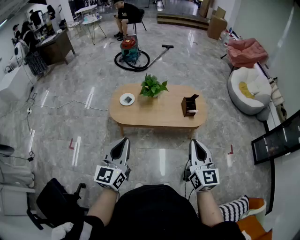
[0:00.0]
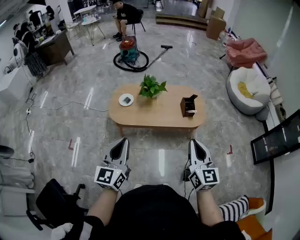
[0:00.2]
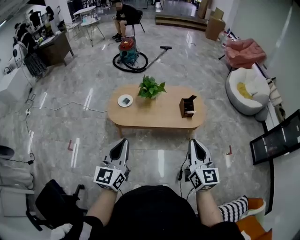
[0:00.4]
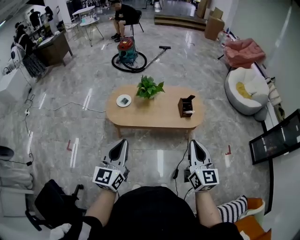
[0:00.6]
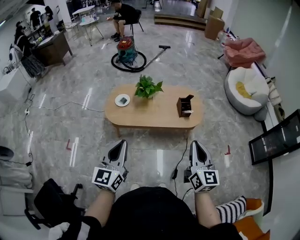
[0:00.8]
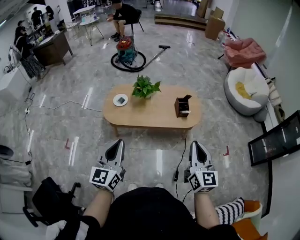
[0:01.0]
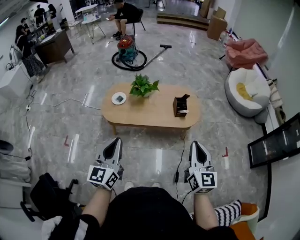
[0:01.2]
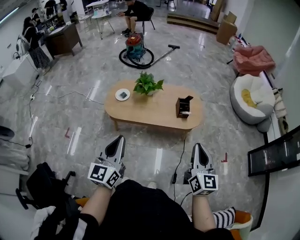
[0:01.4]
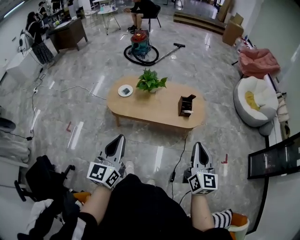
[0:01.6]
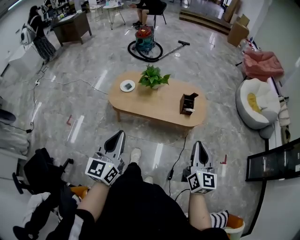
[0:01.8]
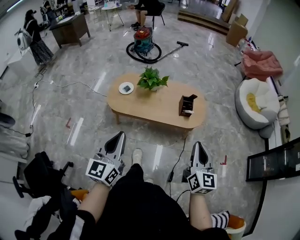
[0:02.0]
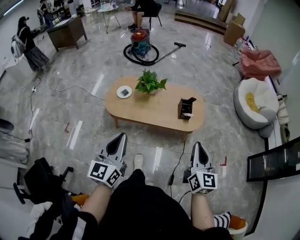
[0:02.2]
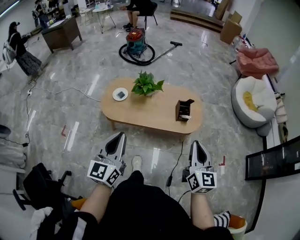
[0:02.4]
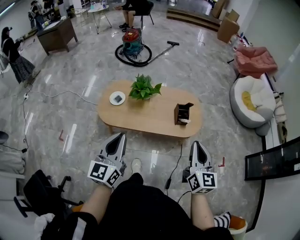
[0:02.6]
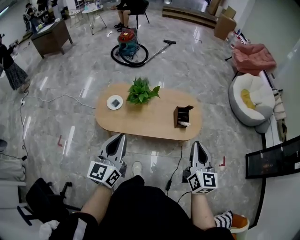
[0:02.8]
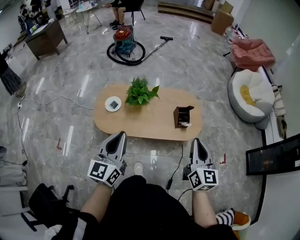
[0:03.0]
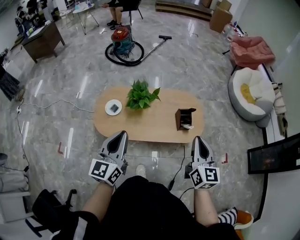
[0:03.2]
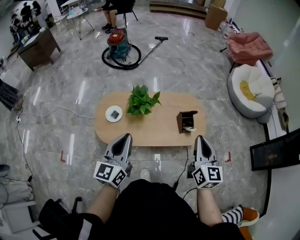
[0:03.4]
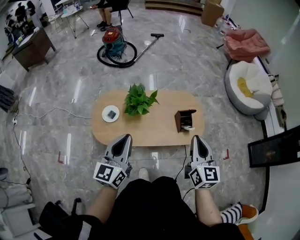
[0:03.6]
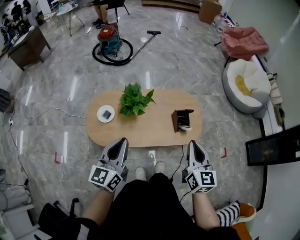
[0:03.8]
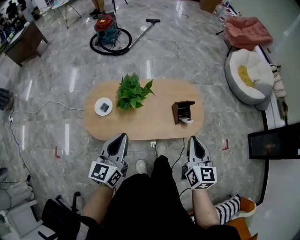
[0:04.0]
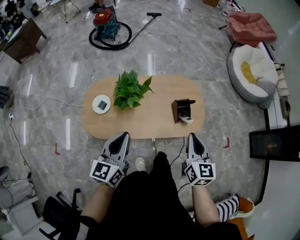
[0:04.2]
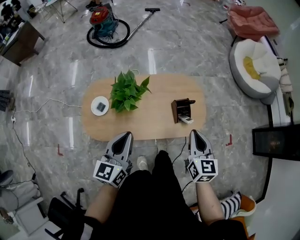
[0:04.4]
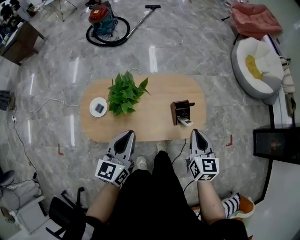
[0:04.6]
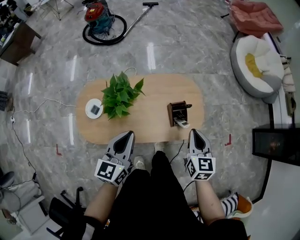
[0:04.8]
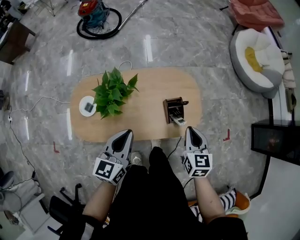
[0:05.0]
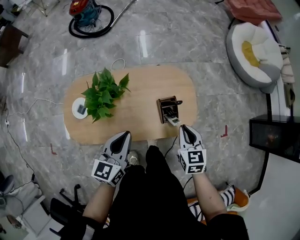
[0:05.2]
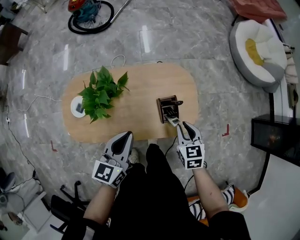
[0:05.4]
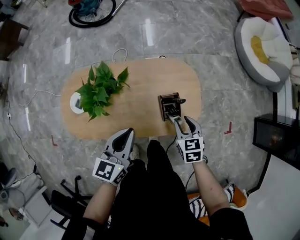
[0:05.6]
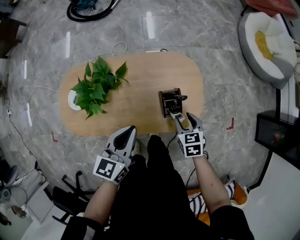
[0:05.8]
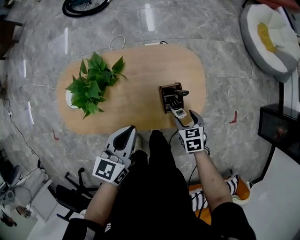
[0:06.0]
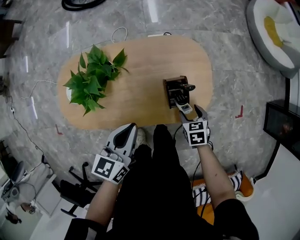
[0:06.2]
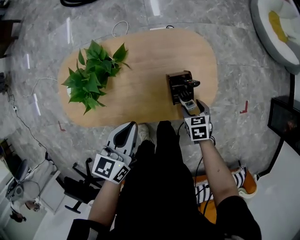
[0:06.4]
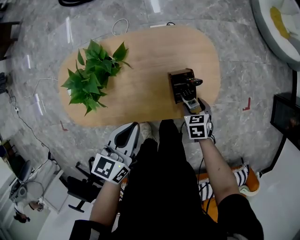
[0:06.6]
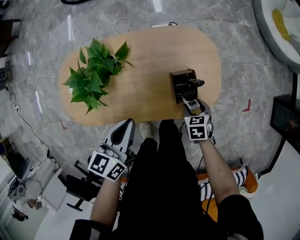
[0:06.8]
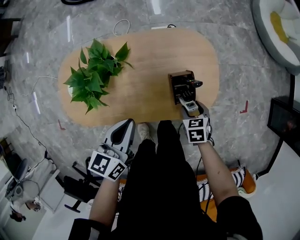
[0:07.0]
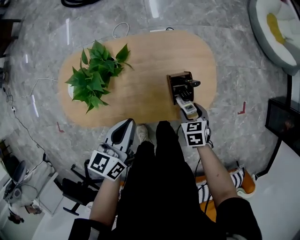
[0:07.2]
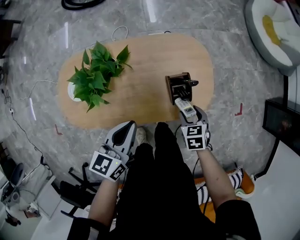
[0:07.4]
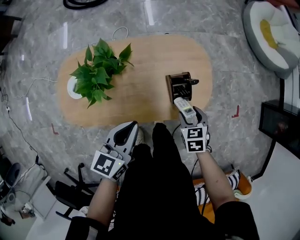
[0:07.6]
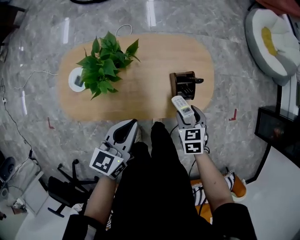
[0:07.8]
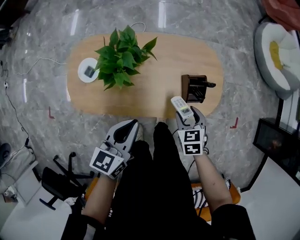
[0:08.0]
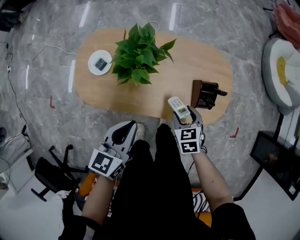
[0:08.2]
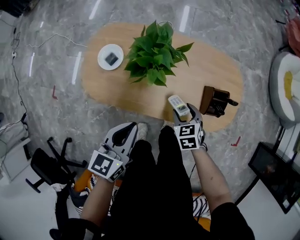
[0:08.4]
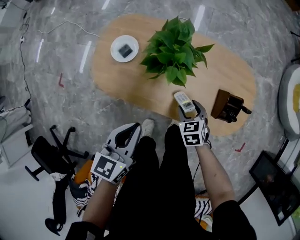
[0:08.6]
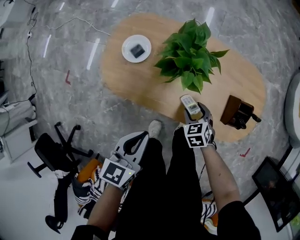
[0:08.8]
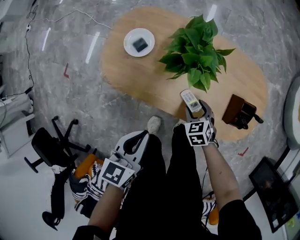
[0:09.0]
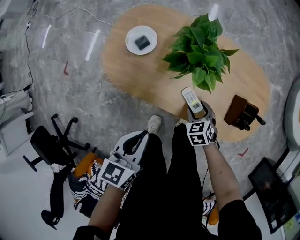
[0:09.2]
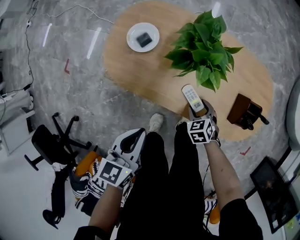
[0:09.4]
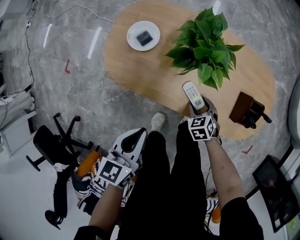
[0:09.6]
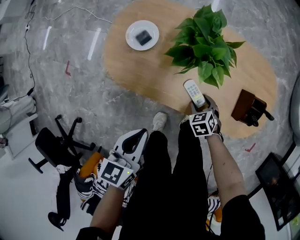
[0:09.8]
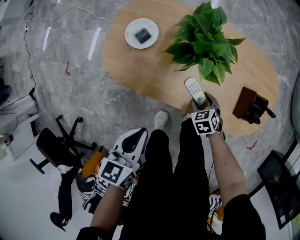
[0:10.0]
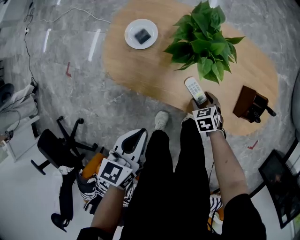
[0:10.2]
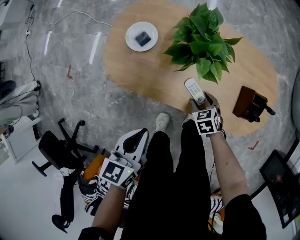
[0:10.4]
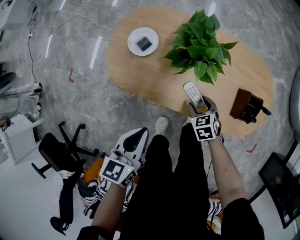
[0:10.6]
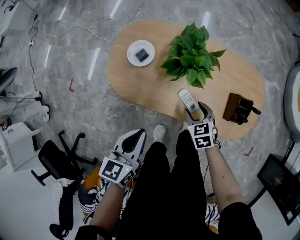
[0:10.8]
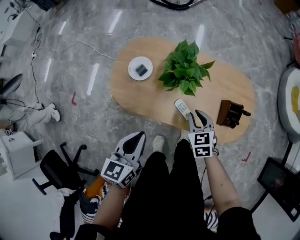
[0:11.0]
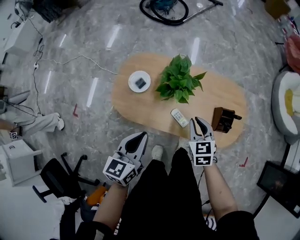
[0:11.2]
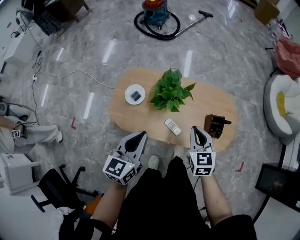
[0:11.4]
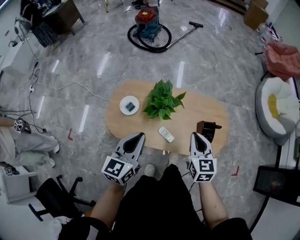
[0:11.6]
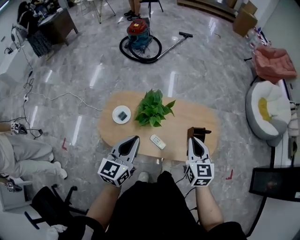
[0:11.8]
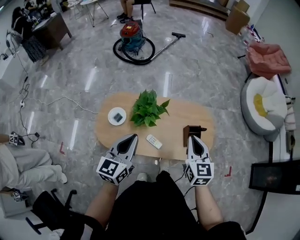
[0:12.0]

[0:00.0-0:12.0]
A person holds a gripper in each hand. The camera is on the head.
0:00.0 to 0:01.6: Both grippers move to the right, approximately 10 cm.
0:01.6 to 0:03.0: Both grippers travel together forward, approximately 20 cm.
0:03.0 to 0:04.4: Both grippers move forward and downward, about 20 cm.
0:04.4 to 0:06.0: The left gripper is displaced downward, to the right and forward by about 20 cm, while the right gripper moves downward, roughly 30 cm, points its fingers about 40 degrees further downward, and opens up.
0:06.0 to 0:07.6: The right gripper moves about 5 cm downward and comes back.
0:07.6 to 0:09.0: The left gripper changes place by approximately 25 cm, and changes its angle by some 30 degrees. The right gripper changes place by roughly 30 cm, and changes its angle by about 40 degrees.
0:09.0 to 0:10.4: The right gripper moves downward, approximately 5 cm.
0:10.4 to 0:12.0: The left gripper shifts approximately 25 cm upward and forward, and swivels about 30 degrees; the right gripper travels upward by roughly 50 cm, tips its fingers upward by about 50 degrees, and closes its fingers.

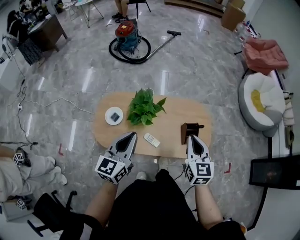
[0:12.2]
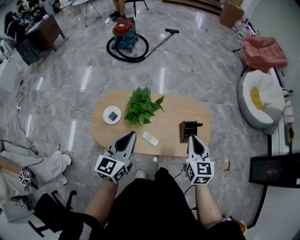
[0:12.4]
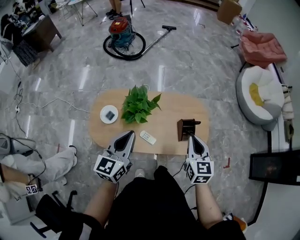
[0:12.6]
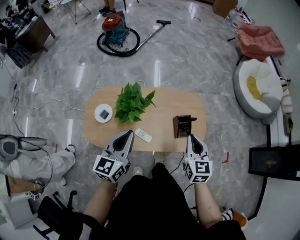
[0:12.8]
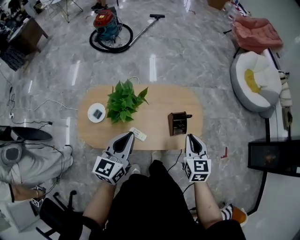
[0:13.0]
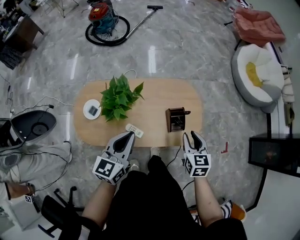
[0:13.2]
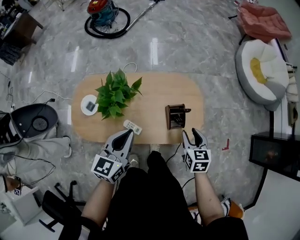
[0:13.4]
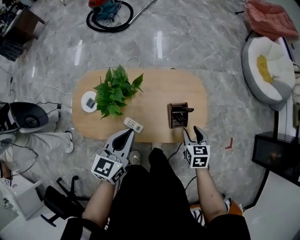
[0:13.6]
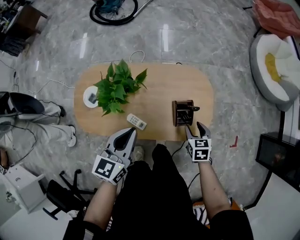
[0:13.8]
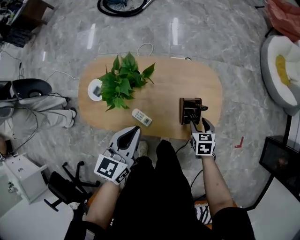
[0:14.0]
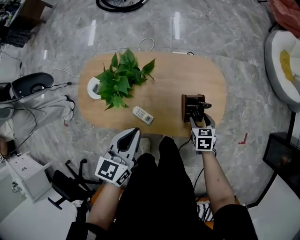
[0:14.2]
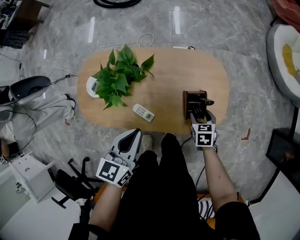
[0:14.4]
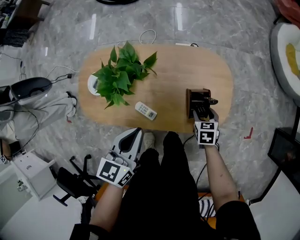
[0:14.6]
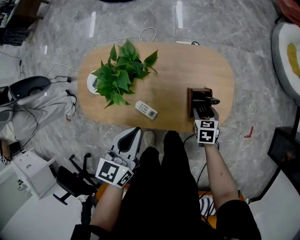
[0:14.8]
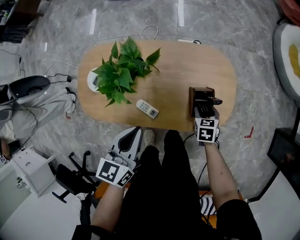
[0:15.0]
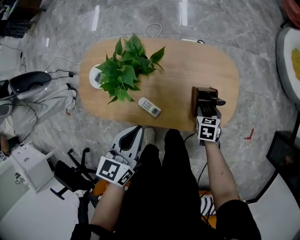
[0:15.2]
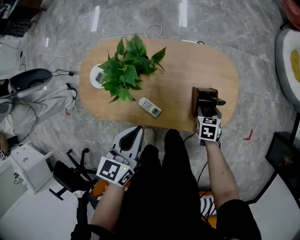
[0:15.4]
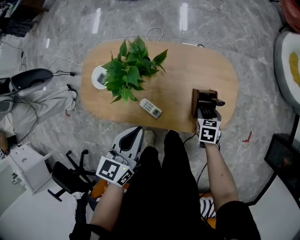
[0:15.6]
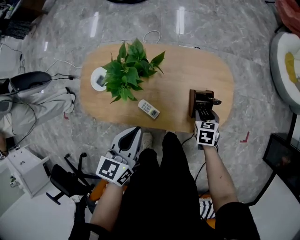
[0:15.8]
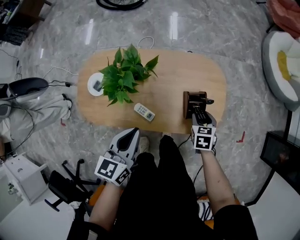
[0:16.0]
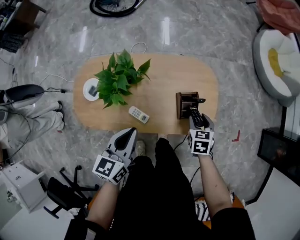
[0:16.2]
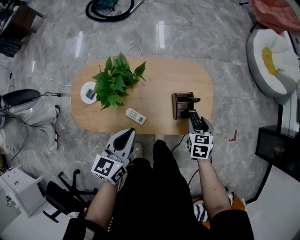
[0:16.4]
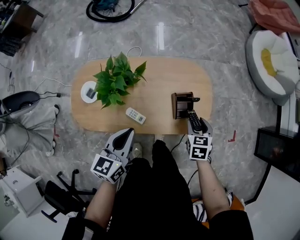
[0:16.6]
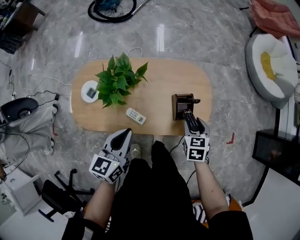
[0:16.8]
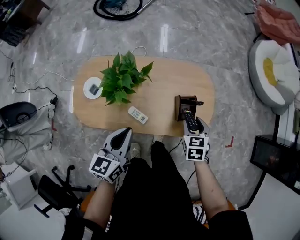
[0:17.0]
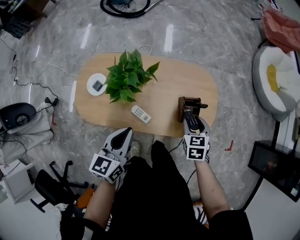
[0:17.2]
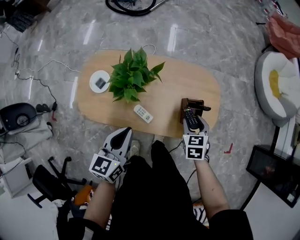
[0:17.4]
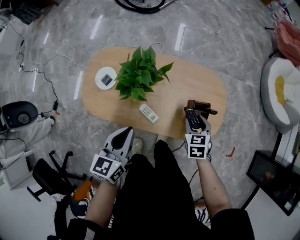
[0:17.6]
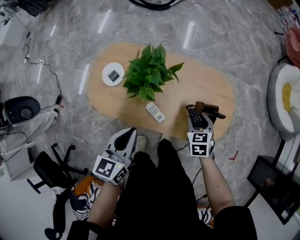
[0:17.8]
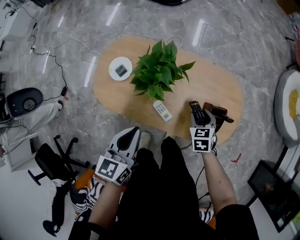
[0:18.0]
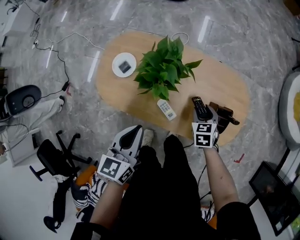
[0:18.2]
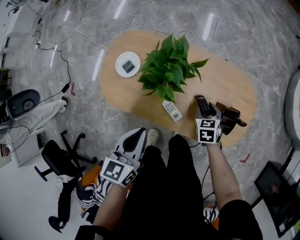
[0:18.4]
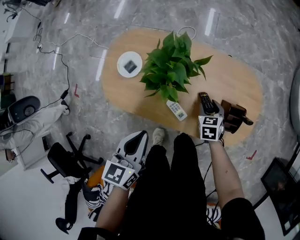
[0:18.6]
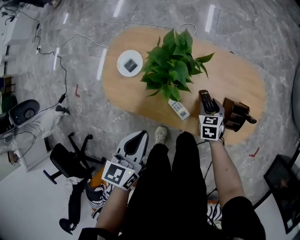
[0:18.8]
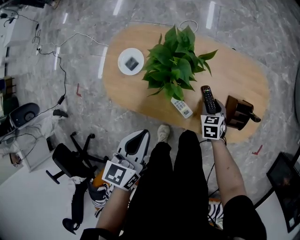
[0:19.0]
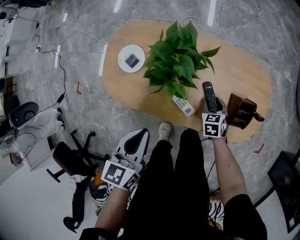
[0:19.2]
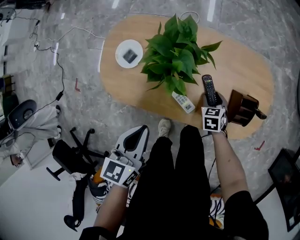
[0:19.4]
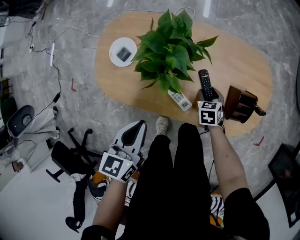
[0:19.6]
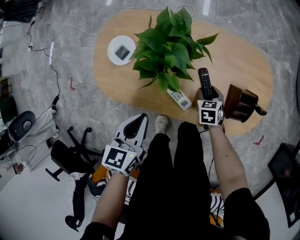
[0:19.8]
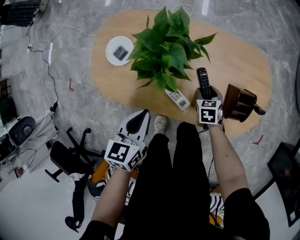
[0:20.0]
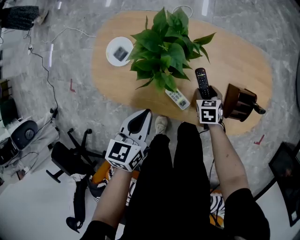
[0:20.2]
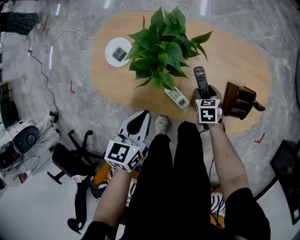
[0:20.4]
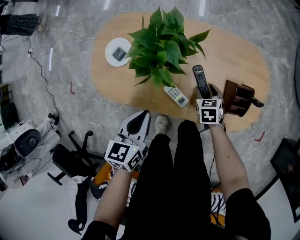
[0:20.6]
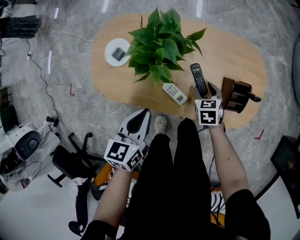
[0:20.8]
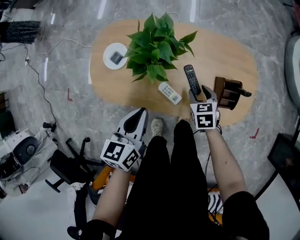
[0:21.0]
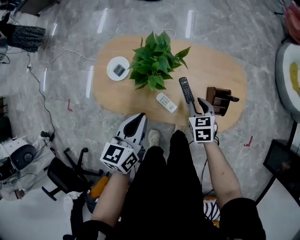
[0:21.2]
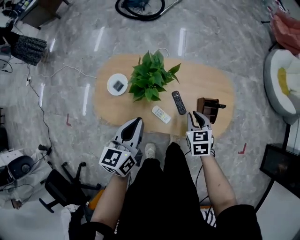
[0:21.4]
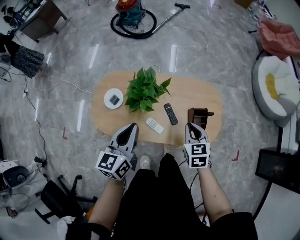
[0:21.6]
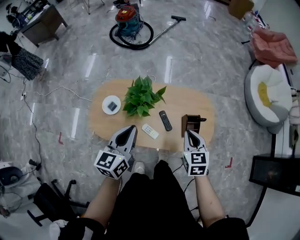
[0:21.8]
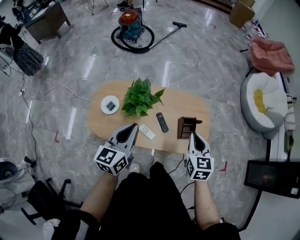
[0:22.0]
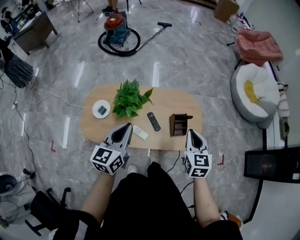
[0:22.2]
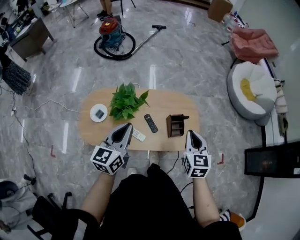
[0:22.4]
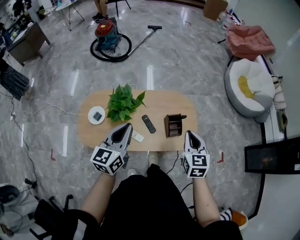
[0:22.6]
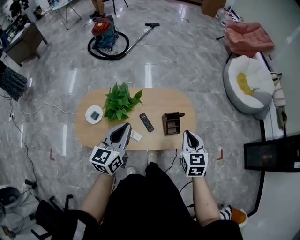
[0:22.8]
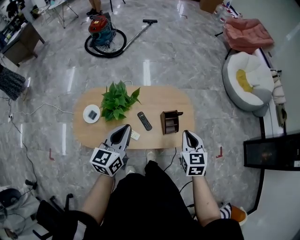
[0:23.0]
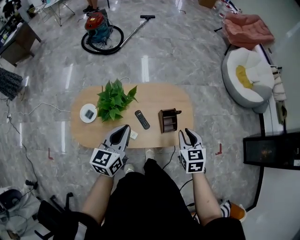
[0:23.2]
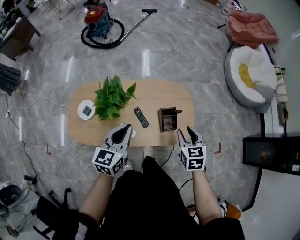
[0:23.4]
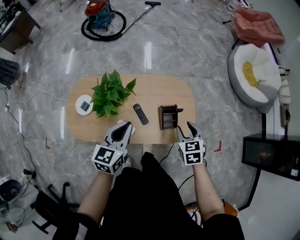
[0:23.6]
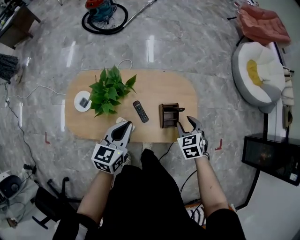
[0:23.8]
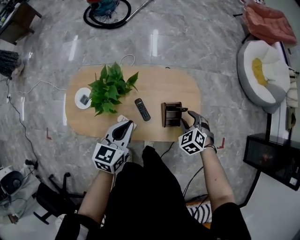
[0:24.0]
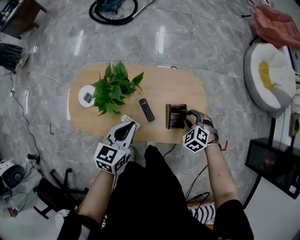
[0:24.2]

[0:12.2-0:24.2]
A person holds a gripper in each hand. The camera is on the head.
0:12.2 to 0:13.8: The left gripper shifts about 20 cm to the right, downward and forward. Meanwhile the right gripper moves downward and to the right, roughly 30 cm, tilts its fingers approximately 30 degrees downward, and opens up.
0:13.8 to 0:15.2: The left gripper heads downward, covering some 5 cm. Meanwhile the right gripper is displaced downward by some 10 cm.
0:15.2 to 0:16.6: The right gripper is displaced upward by roughly 15 cm.
0:16.6 to 0:18.2: The right gripper moves to the left and downward, approximately 20 cm, and swivels approximately 30 degrees, while the left gripper is displaced to the left by approximately 10 cm, and swivels some 20 degrees.
0:18.2 to 0:19.8: Both grippers move downward, roughly 10 cm.
0:19.8 to 0:21.2: The left gripper is displaced upward by about 10 cm. Meanwhile the right gripper shifts approximately 20 cm upward.
0:21.2 to 0:22.6: The left gripper heads upward and to the right, covering about 20 cm, and swivels approximately 20 degrees. The right gripper shifts approximately 30 cm upward and to the right, changes its angle by about 30 degrees, and closes its fingers.
0:22.6 to 0:24.2: The right gripper heads downward and forward, covering roughly 25 cm, points its fingers about 40 degrees further downward, and opens up, while the left gripper is displaced downward and forward by about 15 cm, and rotates about 20 degrees.
